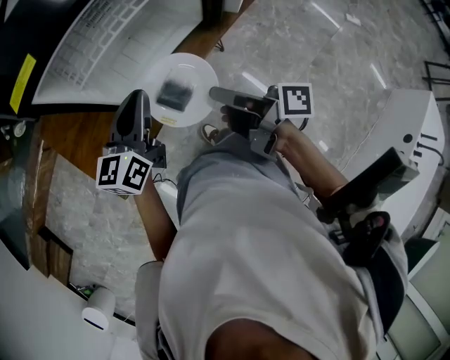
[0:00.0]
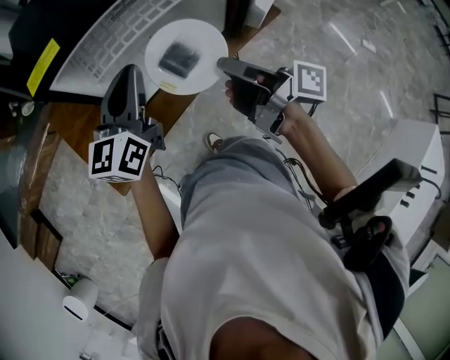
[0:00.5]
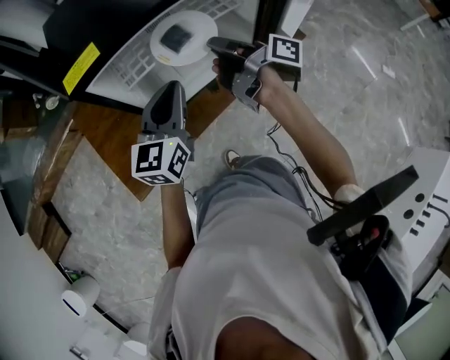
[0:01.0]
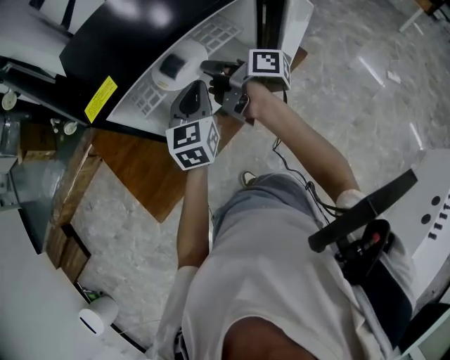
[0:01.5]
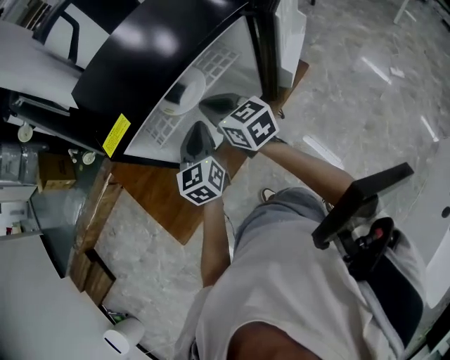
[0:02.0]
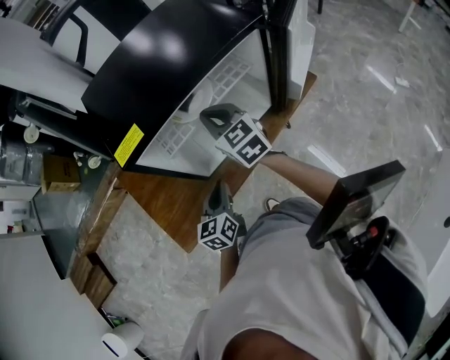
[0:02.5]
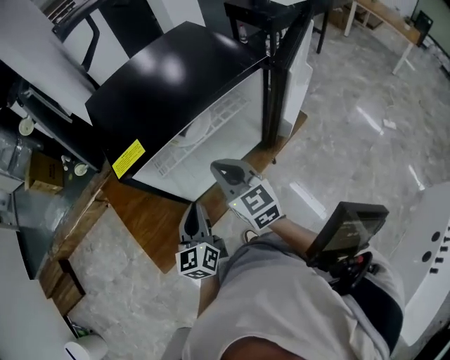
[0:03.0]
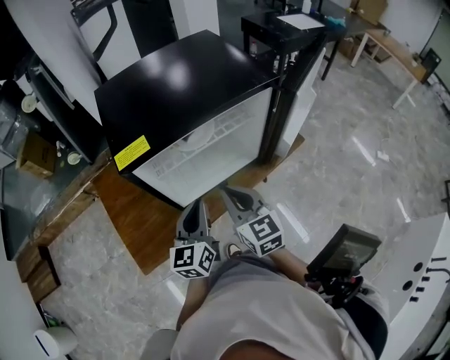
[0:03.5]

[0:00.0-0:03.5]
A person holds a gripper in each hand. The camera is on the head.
0:00.0 to 0:02.0: The left gripper is displaced forward by about 10 cm, and rotates some 20 degrees. Meanwhile the right gripper goes about 25 cm forward and upward, and rotates around the line of its fingers by some 60 degrees, counterclockwise from behind.
0:02.0 to 0:03.5: Both grippers move backward, roughly 10 cm. The left gripper travels downward and back again, about 10 cm each way.

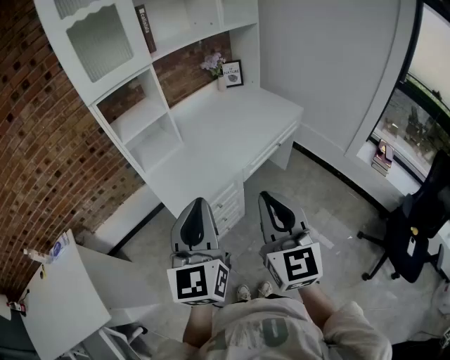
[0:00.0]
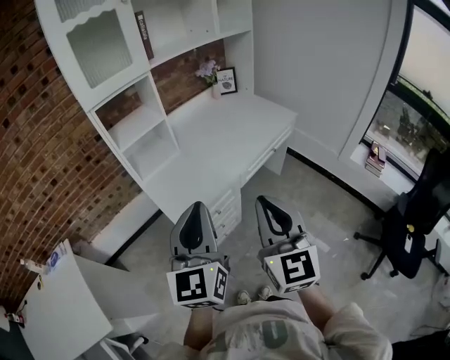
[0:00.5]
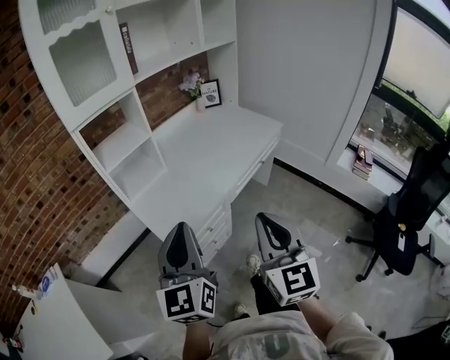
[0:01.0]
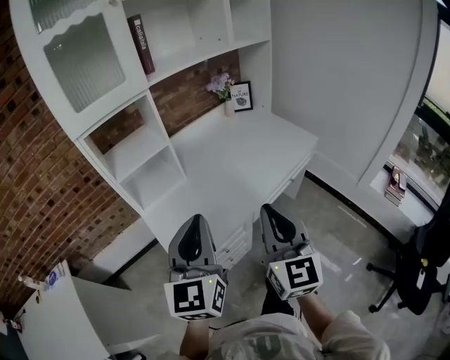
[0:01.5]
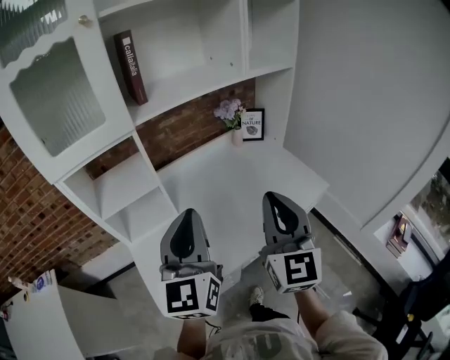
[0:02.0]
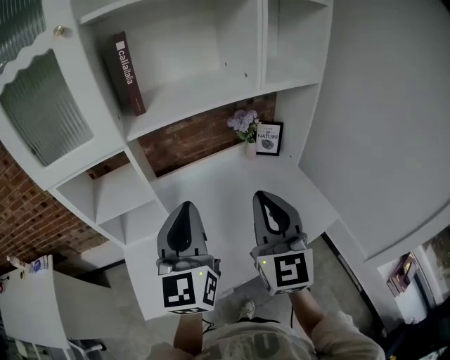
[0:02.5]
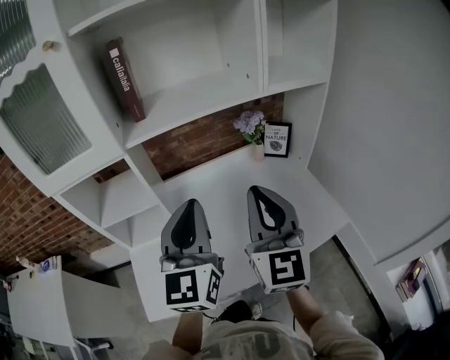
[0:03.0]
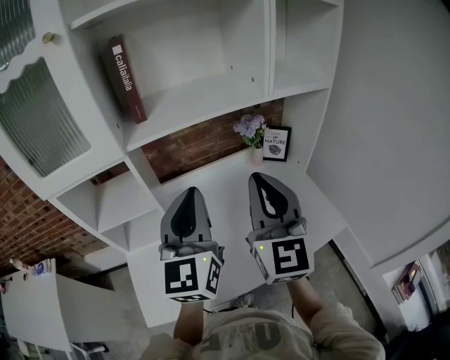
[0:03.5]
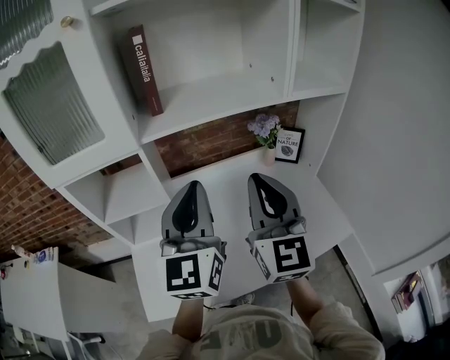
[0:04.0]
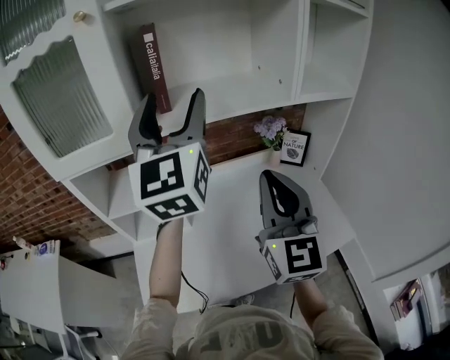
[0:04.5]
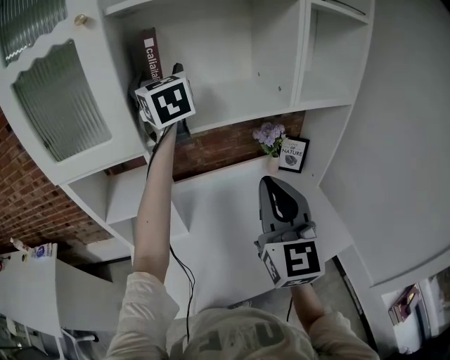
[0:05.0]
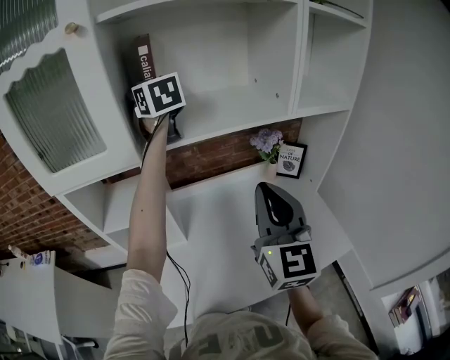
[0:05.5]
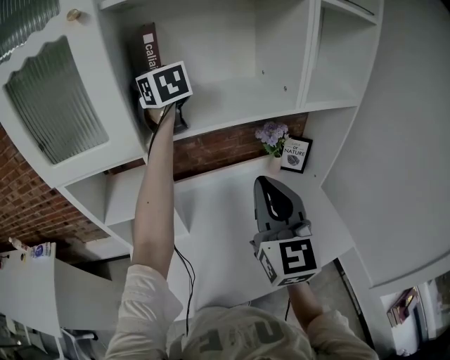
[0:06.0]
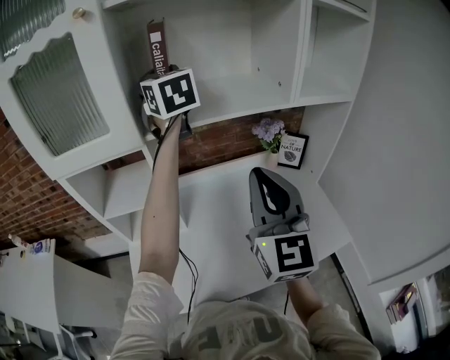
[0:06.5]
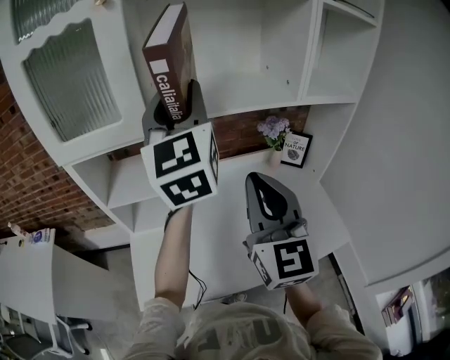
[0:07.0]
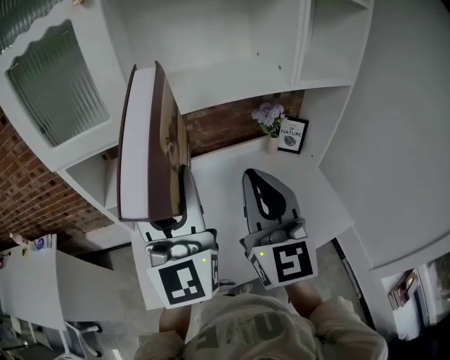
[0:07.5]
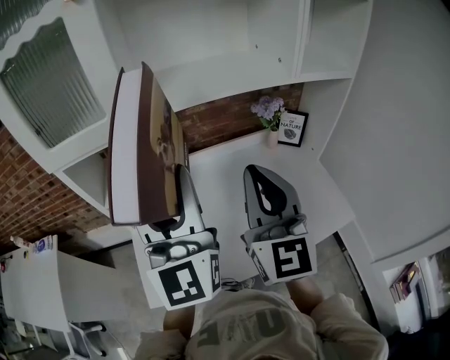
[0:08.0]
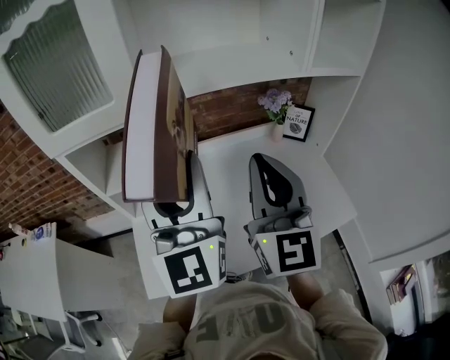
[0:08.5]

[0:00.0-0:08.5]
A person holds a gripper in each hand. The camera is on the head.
0:00.0 to 0:02.0: The two grippers go roughly 35 cm forward.
0:02.0 to 0:04.0: The grippers both shift forward by roughly 15 cm.
0:04.0 to 0:06.5: The left gripper moves forward and upward, about 30 cm, rotates about 30 degrees, and opens.
0:06.5 to 0:08.5: The left gripper moves backward, some 30 cm, and rotates some 20 degrees.

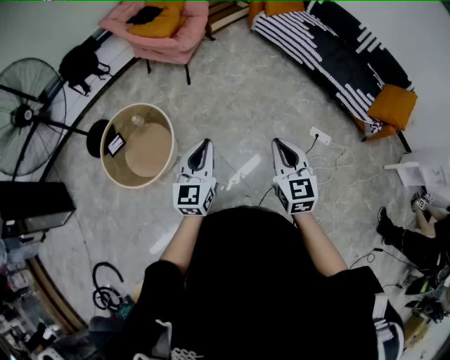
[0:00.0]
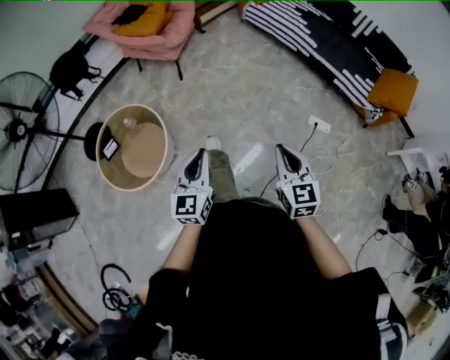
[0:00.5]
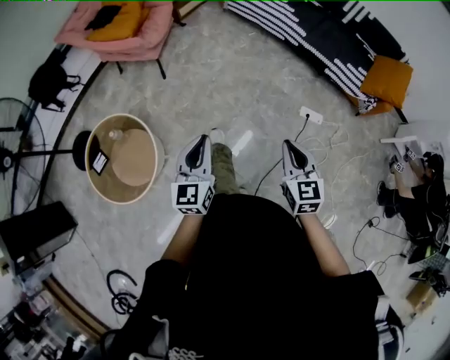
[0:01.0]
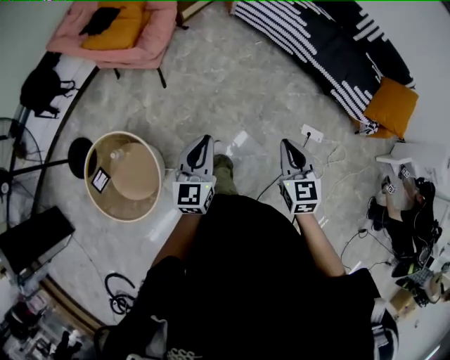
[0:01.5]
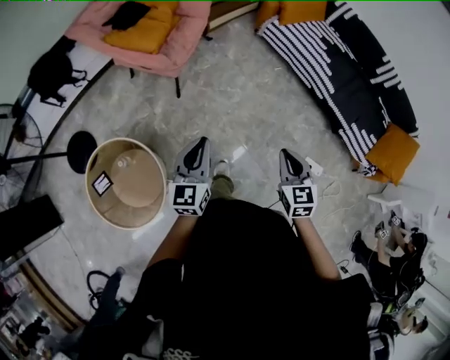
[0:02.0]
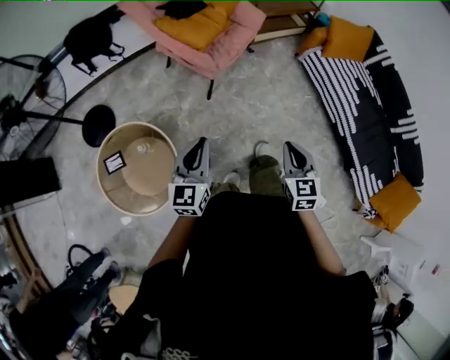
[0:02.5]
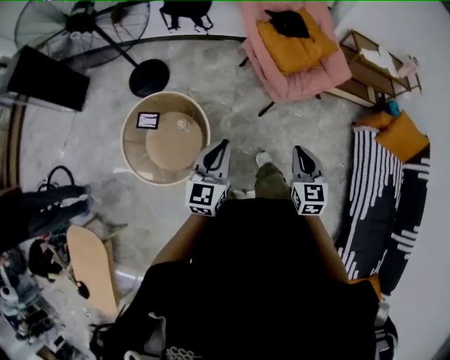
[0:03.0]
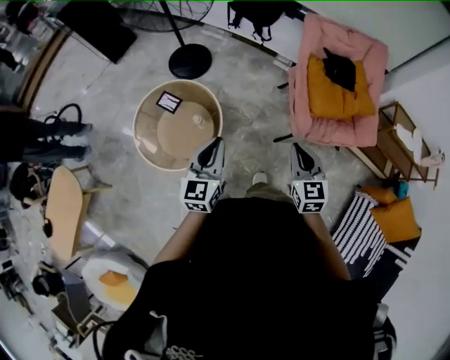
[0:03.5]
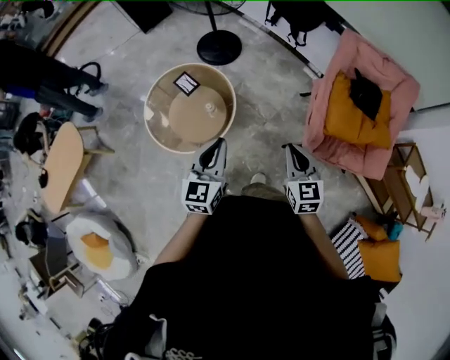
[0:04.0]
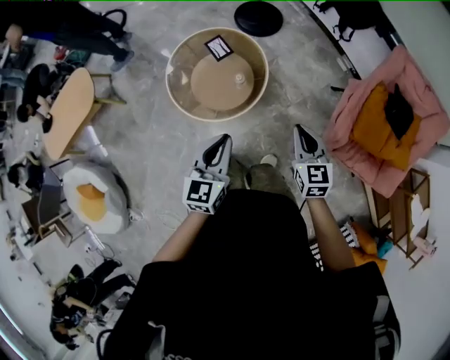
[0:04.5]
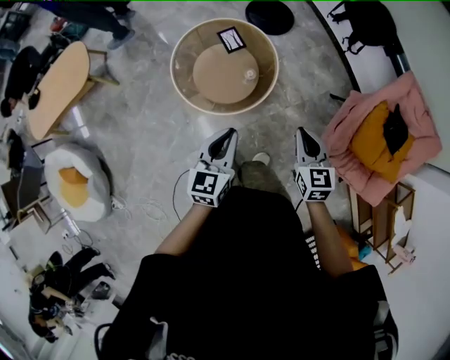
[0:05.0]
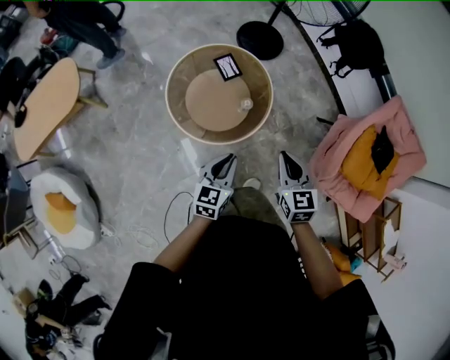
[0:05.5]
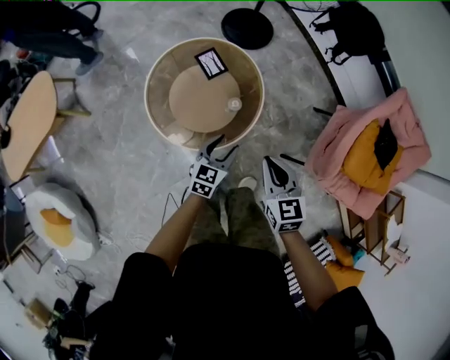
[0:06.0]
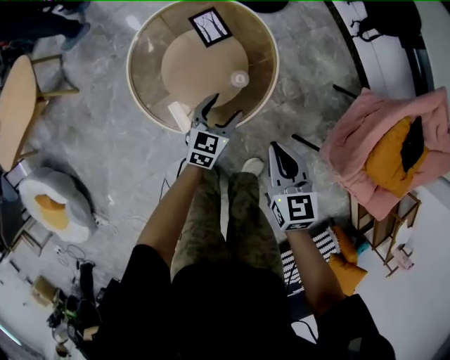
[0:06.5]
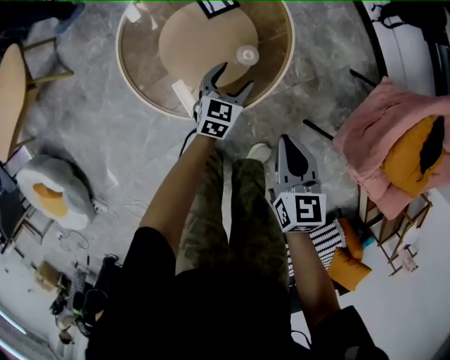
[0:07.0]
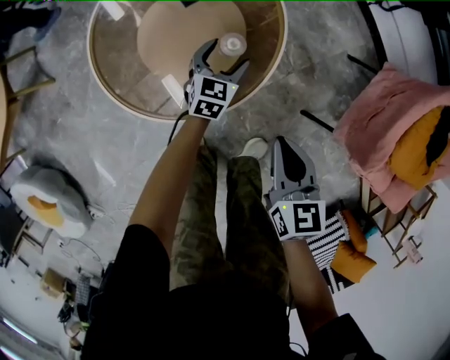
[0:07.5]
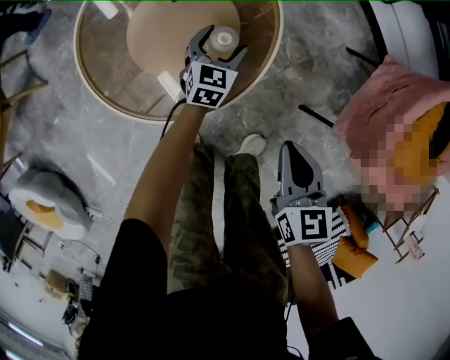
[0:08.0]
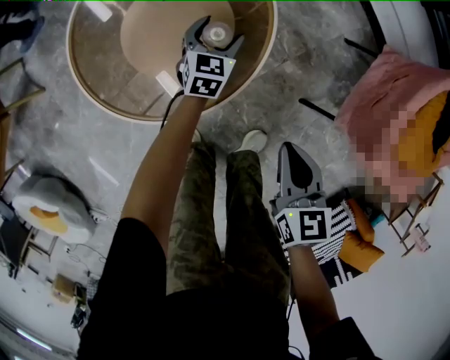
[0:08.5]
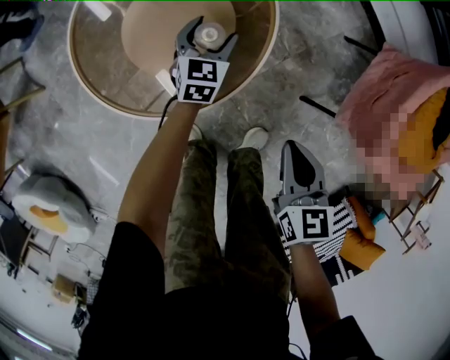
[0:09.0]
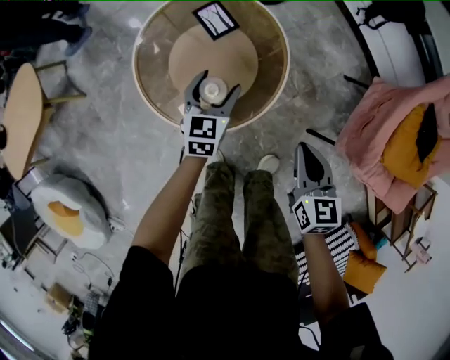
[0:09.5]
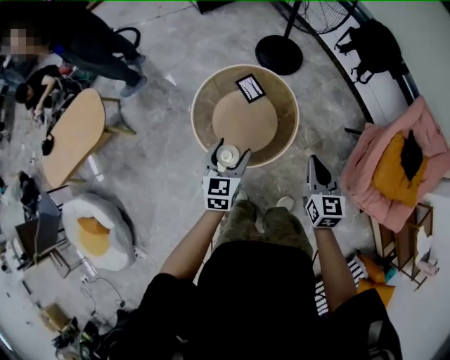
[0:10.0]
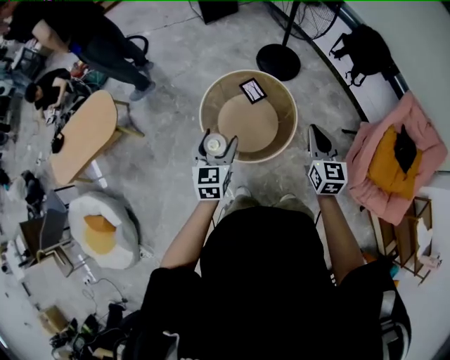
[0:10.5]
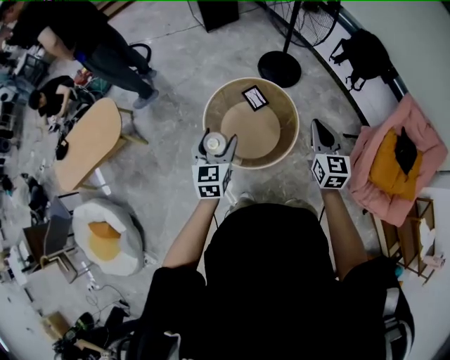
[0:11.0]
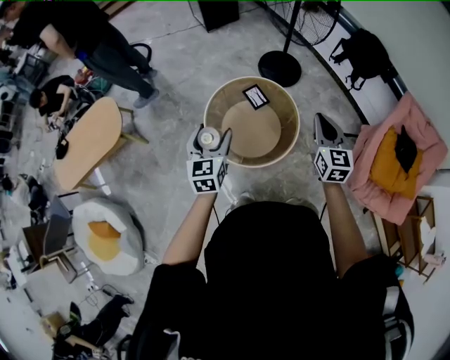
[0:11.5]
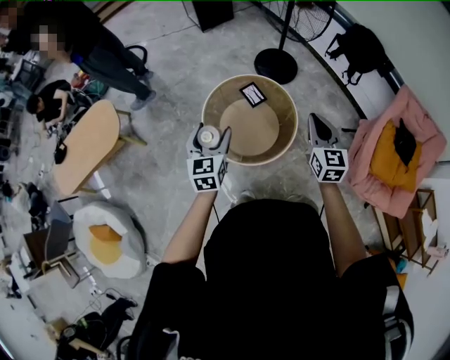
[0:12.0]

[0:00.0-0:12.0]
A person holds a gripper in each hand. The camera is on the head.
0:00.0 to 0:02.0: The pair of grippers is taken forward, roughly 50 cm.
0:02.0 to 0:04.0: The right gripper ends up about 60 cm from where it was, and rotates approximately 90 degrees; the left gripper changes place by roughly 30 cm, and changes its angle by some 80 degrees.
0:04.0 to 0:06.0: The right gripper shifts approximately 35 cm to the left, forward and downward. The left gripper goes approximately 35 cm downward, to the left and forward, and opens its fingers.
0:06.0 to 0:08.0: The left gripper moves downward and forward, roughly 40 cm, and opens up; the right gripper heads downward, covering some 30 cm.
0:08.0 to 0:10.0: The left gripper goes roughly 50 cm upward and to the left; the right gripper moves upward, about 35 cm.
0:10.0 to 0:12.0: The right gripper shifts some 10 cm upward; the left gripper moves upward and to the left, about 15 cm.

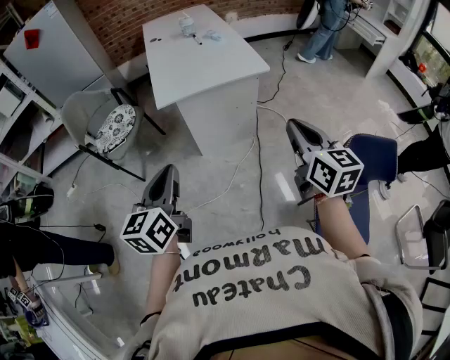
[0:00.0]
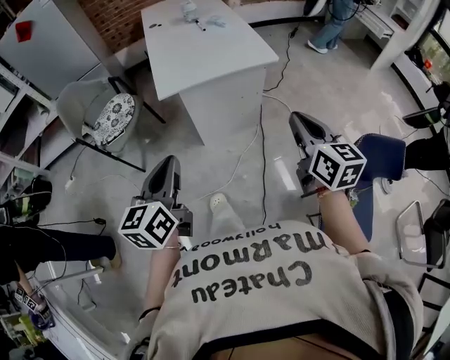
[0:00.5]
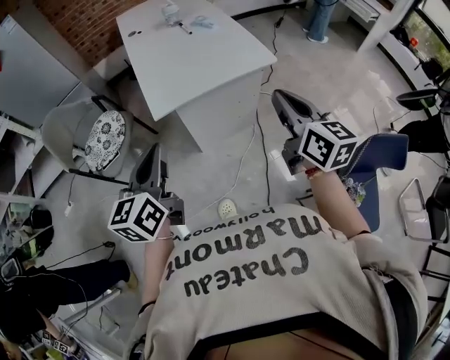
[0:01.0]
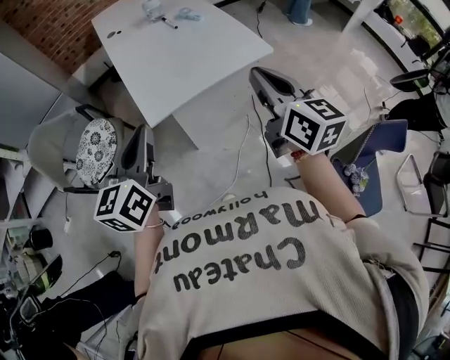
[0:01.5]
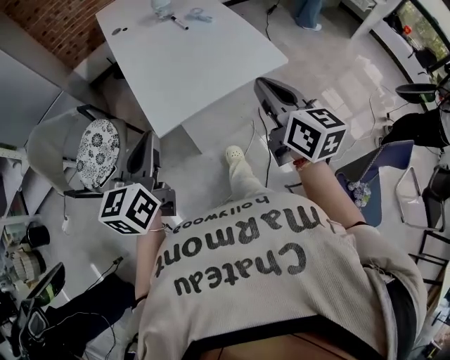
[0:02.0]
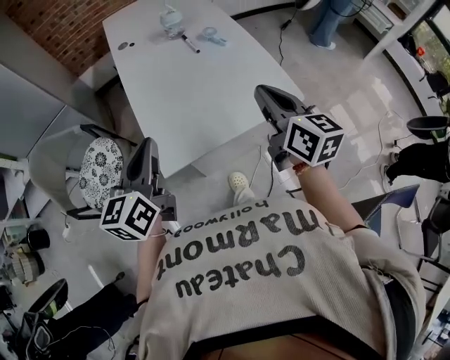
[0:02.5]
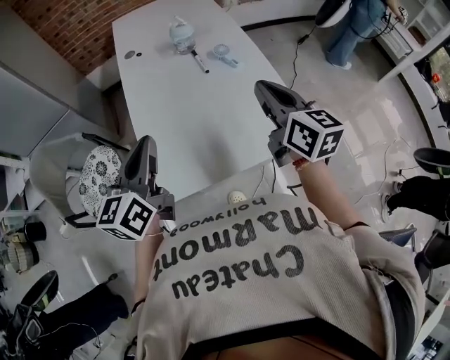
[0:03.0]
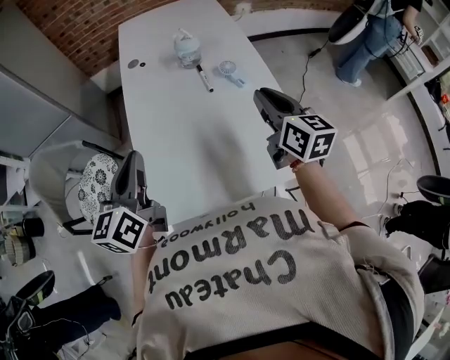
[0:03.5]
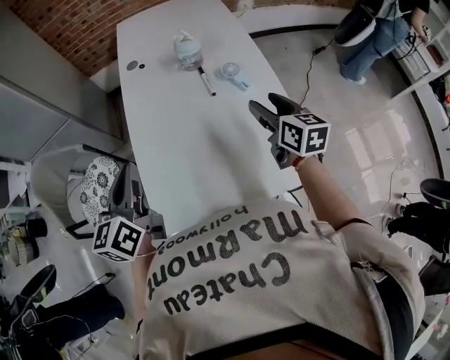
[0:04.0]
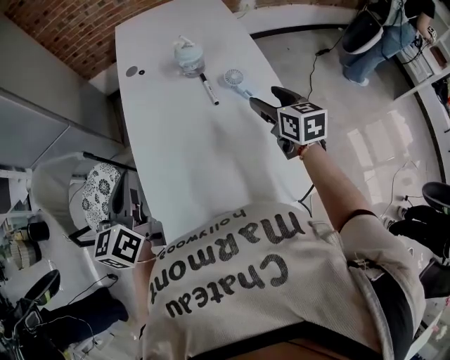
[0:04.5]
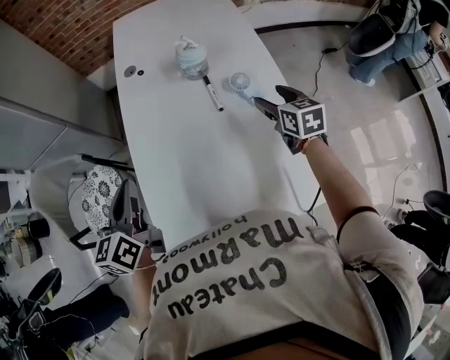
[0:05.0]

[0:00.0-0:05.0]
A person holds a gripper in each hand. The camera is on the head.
0:00.0 to 0:02.5: The pair of grippers is taken forward, about 50 cm.
0:02.5 to 0:05.0: The left gripper heads forward, covering some 25 cm, and turns by about 20 degrees; the right gripper moves forward and downward, approximately 40 cm, changes its angle by approximately 30 degrees, and opens its fingers.
